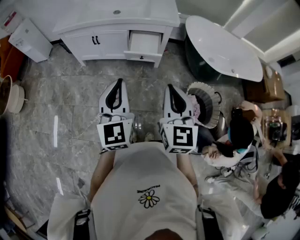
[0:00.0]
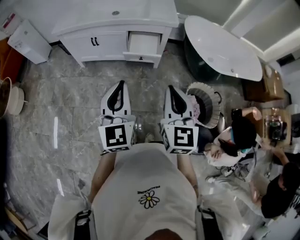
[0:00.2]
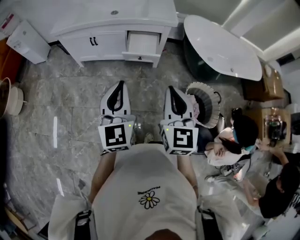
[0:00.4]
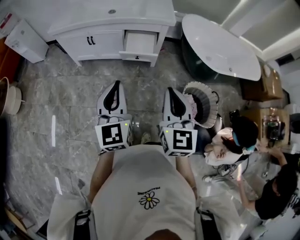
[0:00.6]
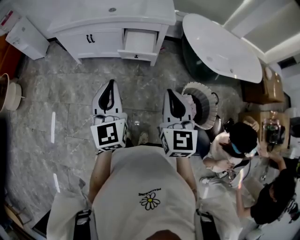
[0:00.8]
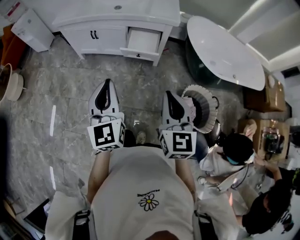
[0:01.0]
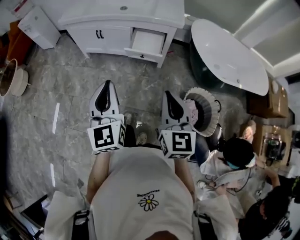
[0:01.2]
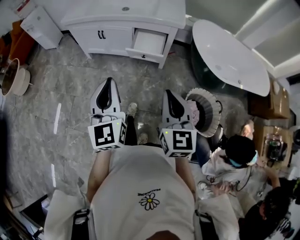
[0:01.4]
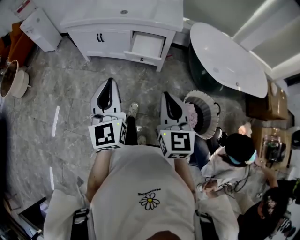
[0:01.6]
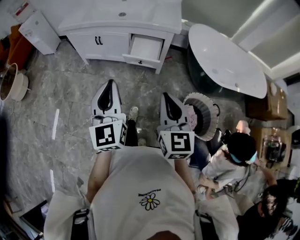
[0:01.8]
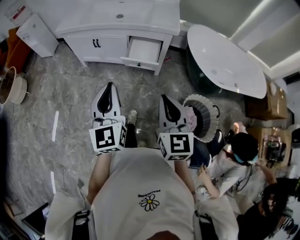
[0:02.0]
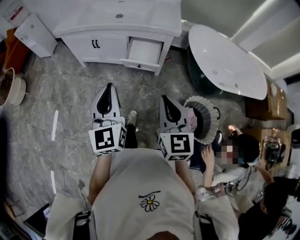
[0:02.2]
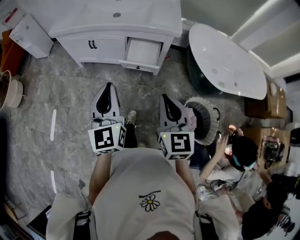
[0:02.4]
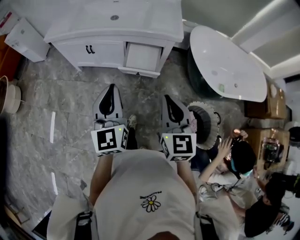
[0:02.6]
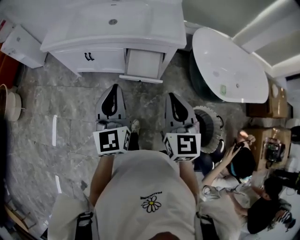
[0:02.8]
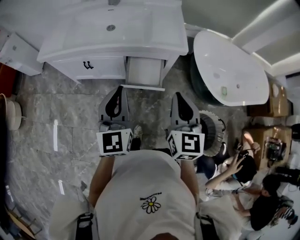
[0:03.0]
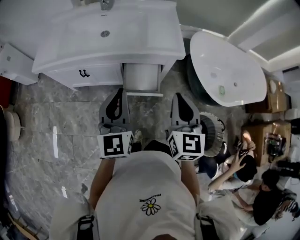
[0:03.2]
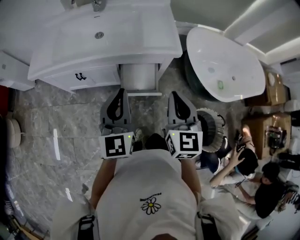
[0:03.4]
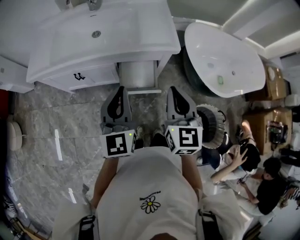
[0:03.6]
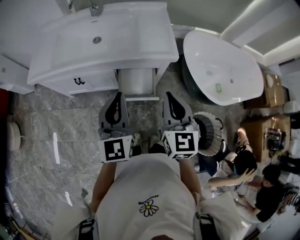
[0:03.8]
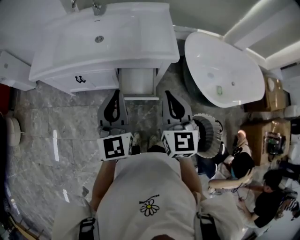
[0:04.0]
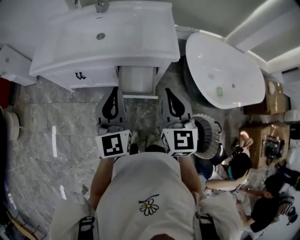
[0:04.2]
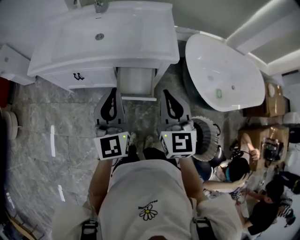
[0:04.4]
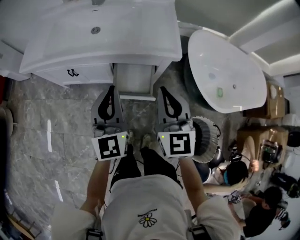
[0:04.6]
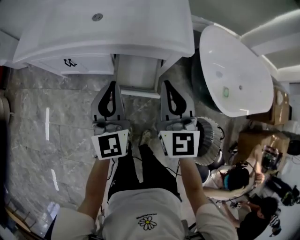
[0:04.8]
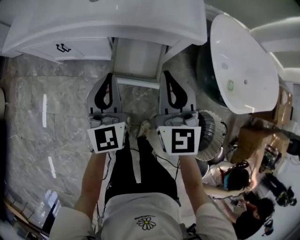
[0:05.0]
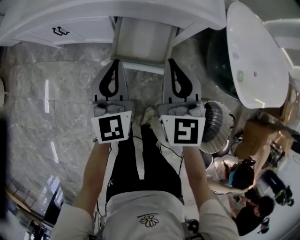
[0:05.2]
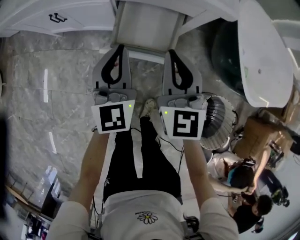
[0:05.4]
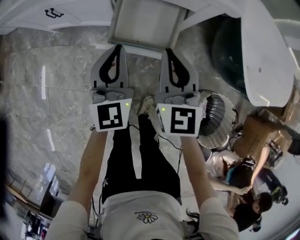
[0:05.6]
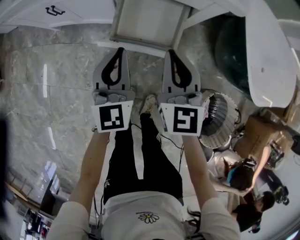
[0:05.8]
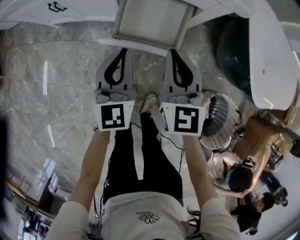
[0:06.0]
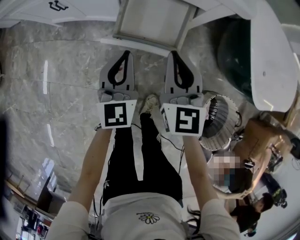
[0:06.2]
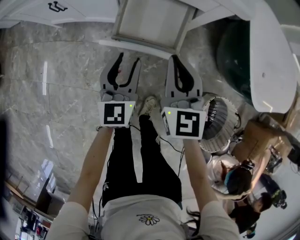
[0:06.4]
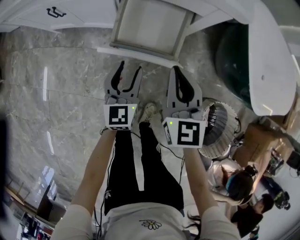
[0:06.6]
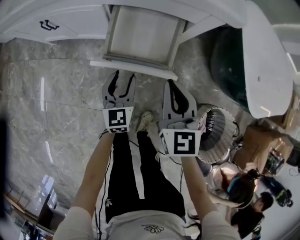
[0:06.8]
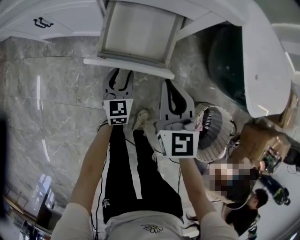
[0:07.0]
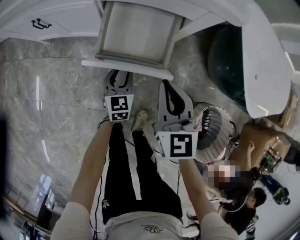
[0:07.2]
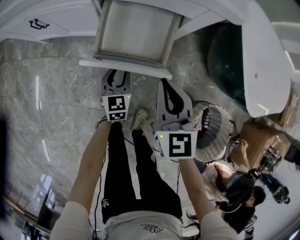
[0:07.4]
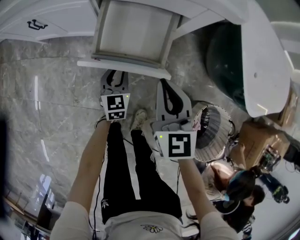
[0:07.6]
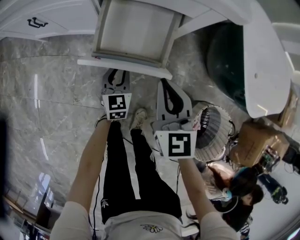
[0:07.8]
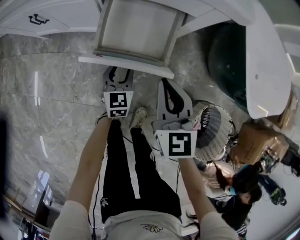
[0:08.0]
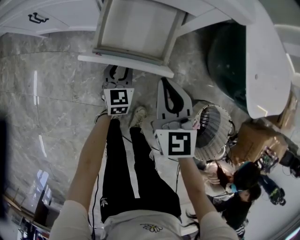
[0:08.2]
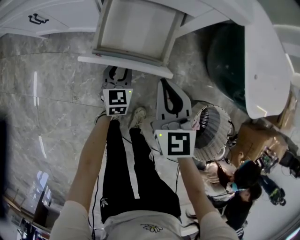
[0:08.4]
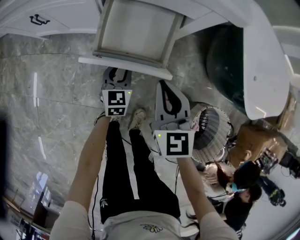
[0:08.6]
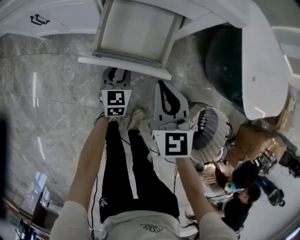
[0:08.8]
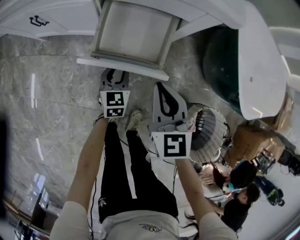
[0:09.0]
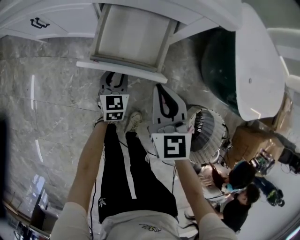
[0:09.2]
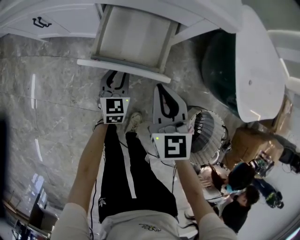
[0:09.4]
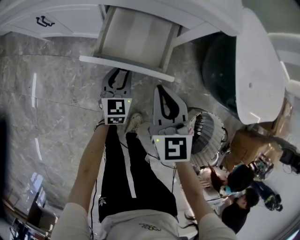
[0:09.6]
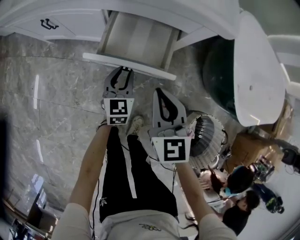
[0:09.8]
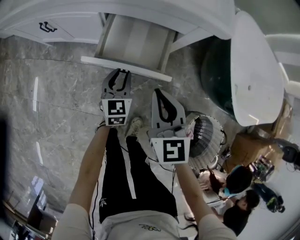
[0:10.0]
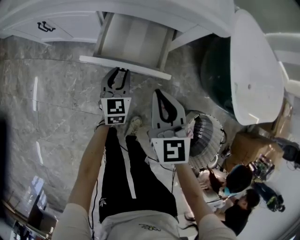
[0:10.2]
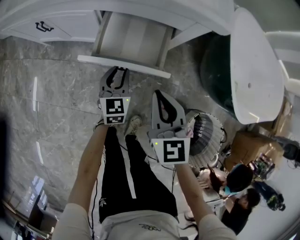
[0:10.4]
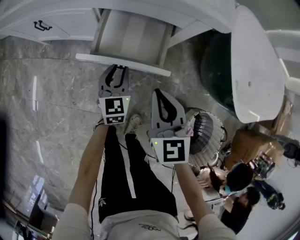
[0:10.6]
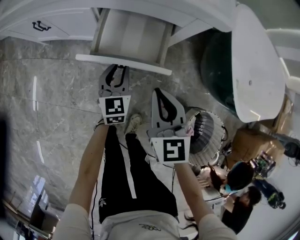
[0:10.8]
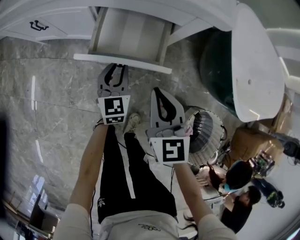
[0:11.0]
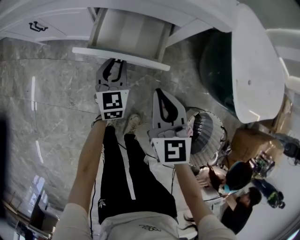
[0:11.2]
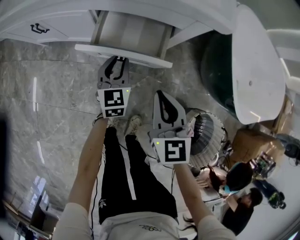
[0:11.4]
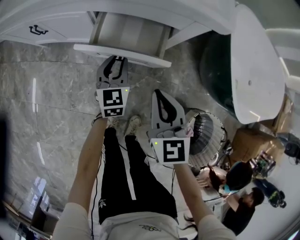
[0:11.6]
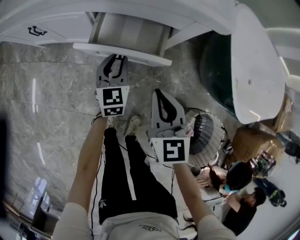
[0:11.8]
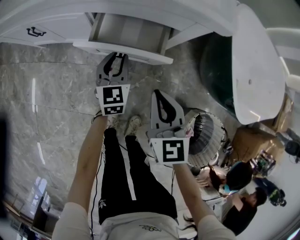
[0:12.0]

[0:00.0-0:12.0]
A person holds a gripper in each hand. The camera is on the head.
0:00.0 to 0:01.6: The right gripper travels to the right by roughly 5 cm.
0:01.6 to 0:03.0: Both grippers move forward, about 30 cm.
0:03.0 to 0:04.4: Both grippers travel together forward, roughly 5 cm.
0:04.4 to 0:06.0: Both grippers travel together downward, approximately 30 cm.
0:06.0 to 0:07.6: The right gripper heads downward, covering approximately 5 cm; the left gripper moves downward, about 20 cm, and opens up.
0:07.6 to 0:09.0: The grippers move only a little.
0:09.0 to 0:10.4: The left gripper is displaced upward by roughly 5 cm.
0:10.4 to 0:12.0: The left gripper heads forward, covering approximately 5 cm.

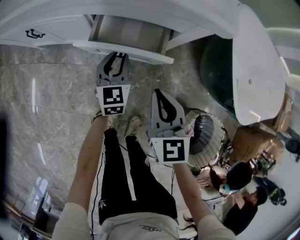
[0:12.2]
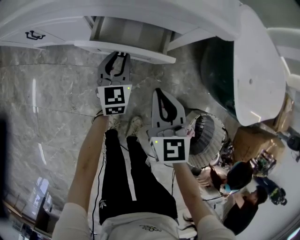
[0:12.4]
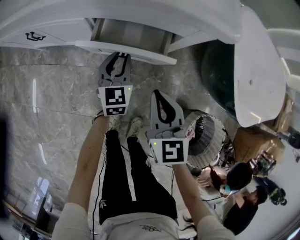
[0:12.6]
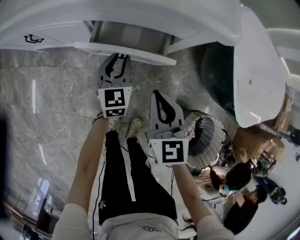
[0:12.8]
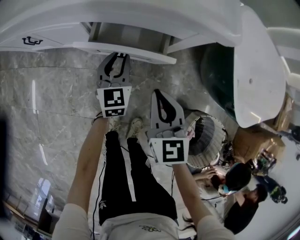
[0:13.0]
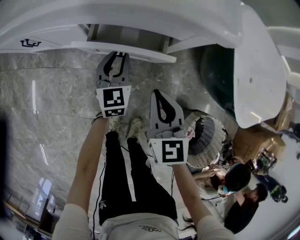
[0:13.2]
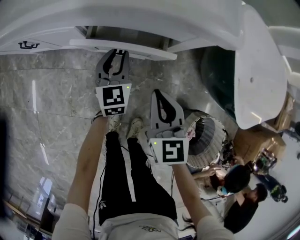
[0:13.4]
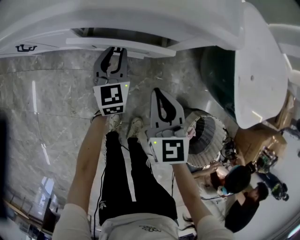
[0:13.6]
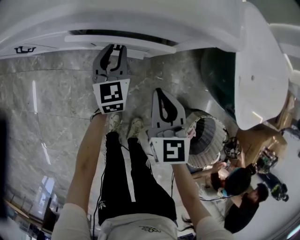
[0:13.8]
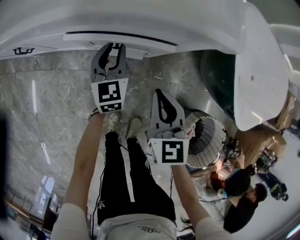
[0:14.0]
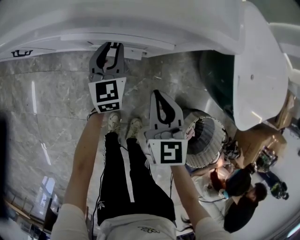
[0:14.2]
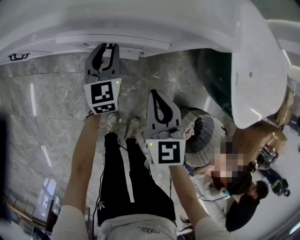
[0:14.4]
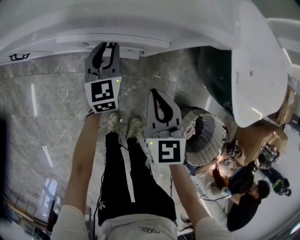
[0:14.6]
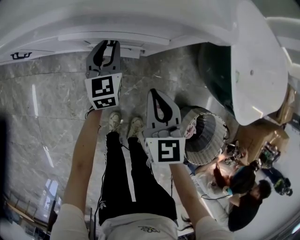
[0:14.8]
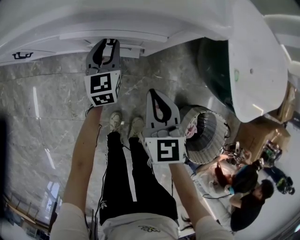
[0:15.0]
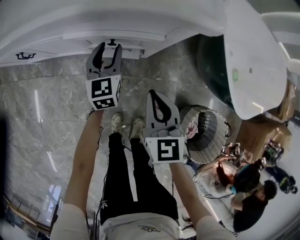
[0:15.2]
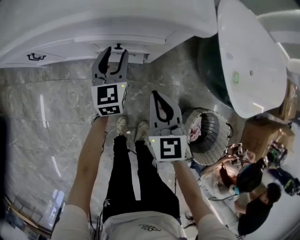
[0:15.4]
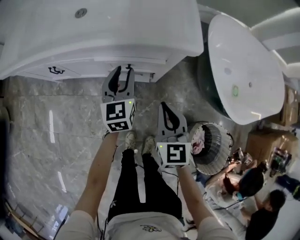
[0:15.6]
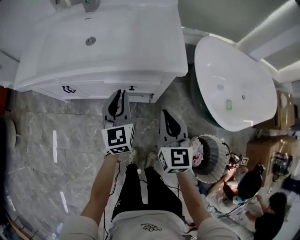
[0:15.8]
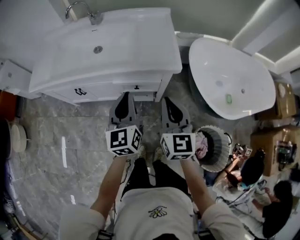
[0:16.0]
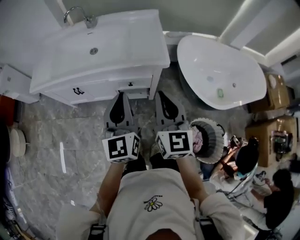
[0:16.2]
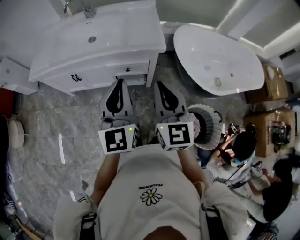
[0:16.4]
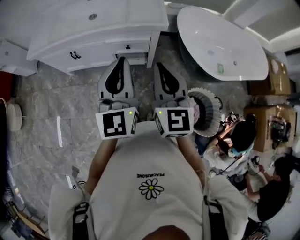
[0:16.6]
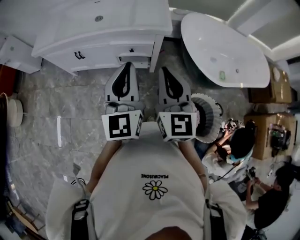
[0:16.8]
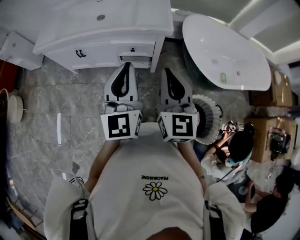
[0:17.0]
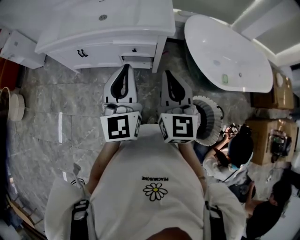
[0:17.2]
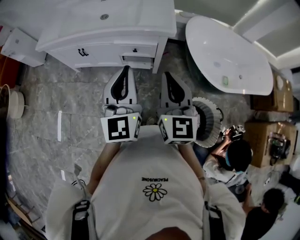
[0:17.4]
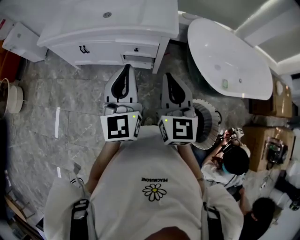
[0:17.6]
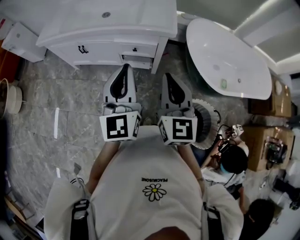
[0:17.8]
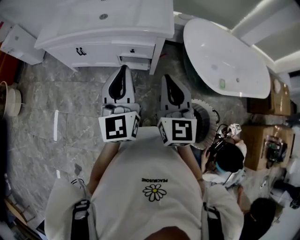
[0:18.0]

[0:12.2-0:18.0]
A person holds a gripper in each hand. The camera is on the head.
0:12.2 to 0:13.6: The left gripper moves forward, some 5 cm.
0:13.6 to 0:15.0: The grippers make only small movements.
0:15.0 to 0:16.6: The two grippers go about 50 cm upward and backward. The right gripper swivels roughly 20 degrees. The left gripper swivels some 30 degrees, and closes its fingers.
0:16.6 to 0:18.0: The grippers stay close to where they were, moving slightly.

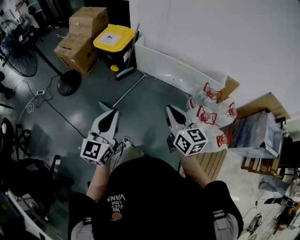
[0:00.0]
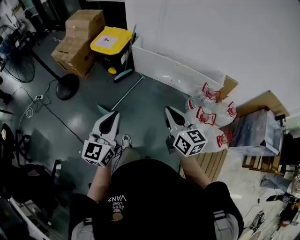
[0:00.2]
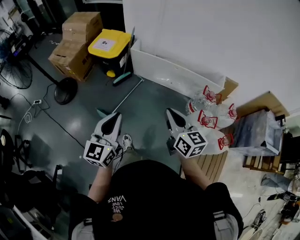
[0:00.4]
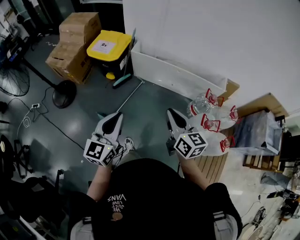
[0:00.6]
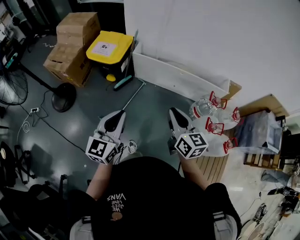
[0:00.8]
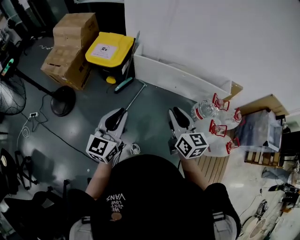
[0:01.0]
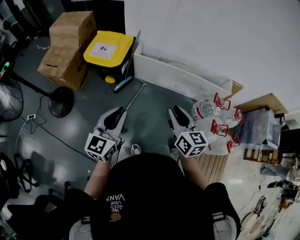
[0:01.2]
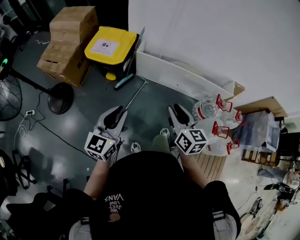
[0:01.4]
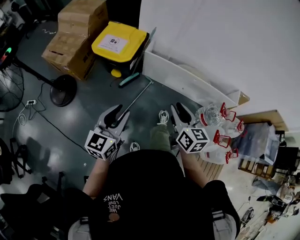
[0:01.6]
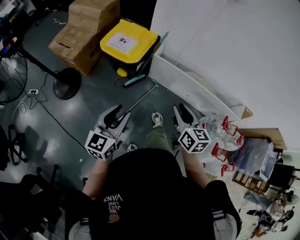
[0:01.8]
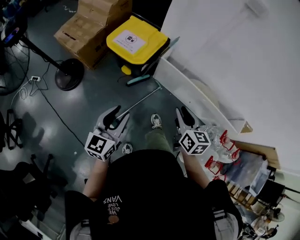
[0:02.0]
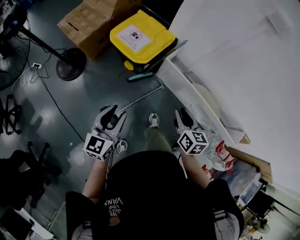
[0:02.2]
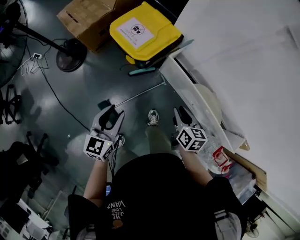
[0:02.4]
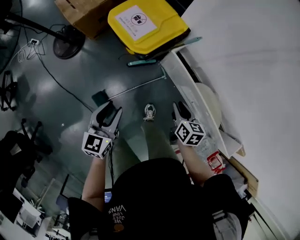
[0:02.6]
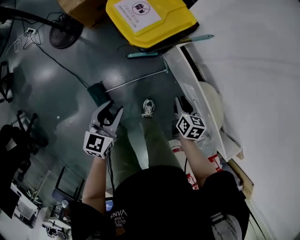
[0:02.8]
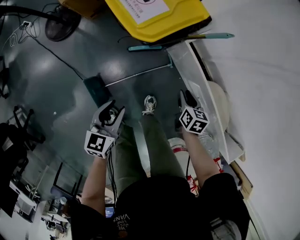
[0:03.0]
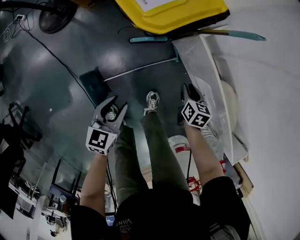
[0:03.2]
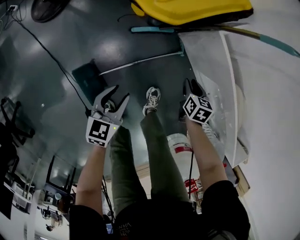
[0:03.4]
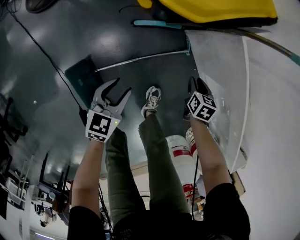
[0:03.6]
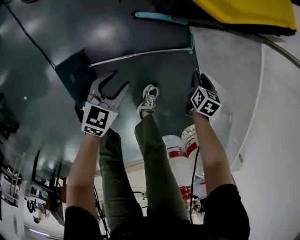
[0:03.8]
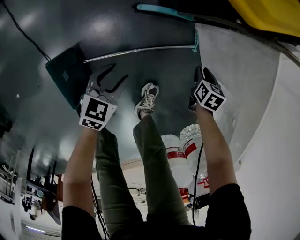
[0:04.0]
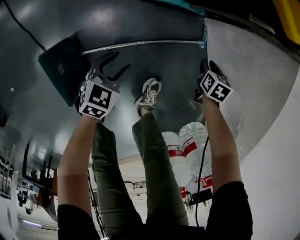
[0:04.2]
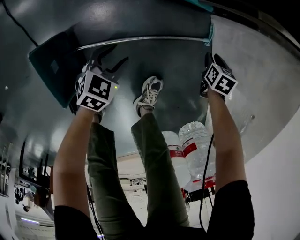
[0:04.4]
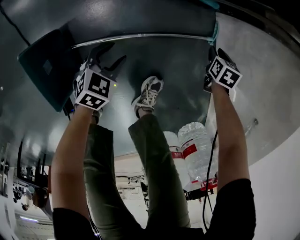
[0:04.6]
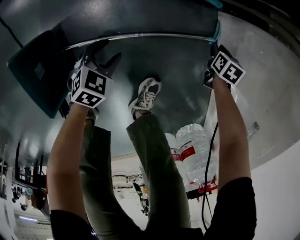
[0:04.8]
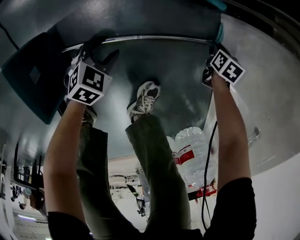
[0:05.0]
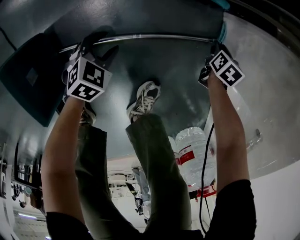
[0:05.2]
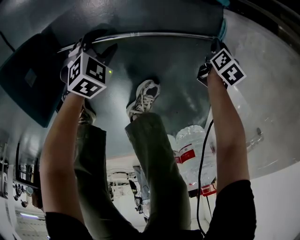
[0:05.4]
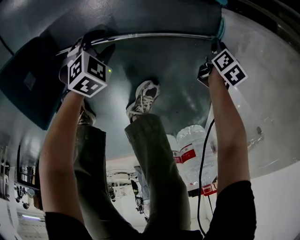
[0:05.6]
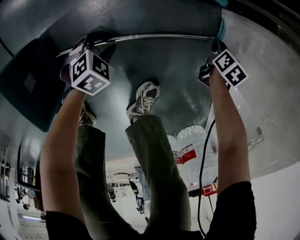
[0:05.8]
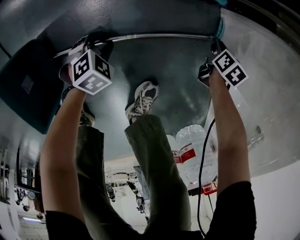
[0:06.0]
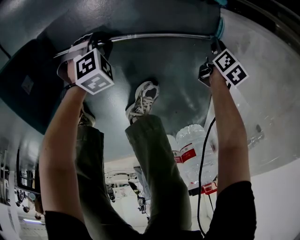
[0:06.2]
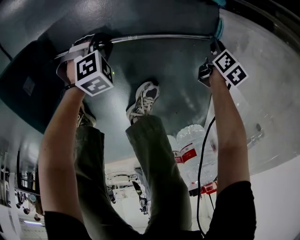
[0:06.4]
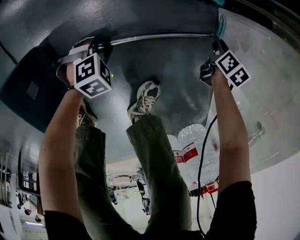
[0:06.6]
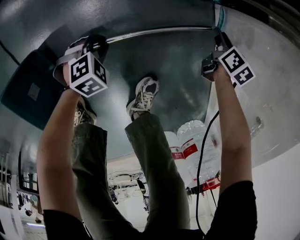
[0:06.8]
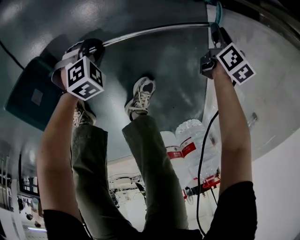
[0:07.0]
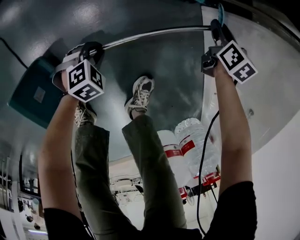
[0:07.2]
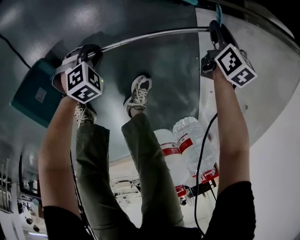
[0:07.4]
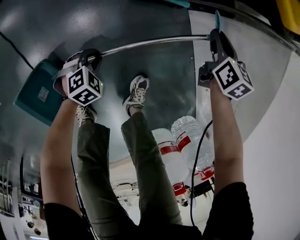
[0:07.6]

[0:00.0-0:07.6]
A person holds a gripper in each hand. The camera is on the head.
0:00.0 to 0:01.6: Both grippers travel together forward and to the left, roughly 35 cm. The right gripper opens up. Meanwhile the left gripper opens.
0:01.6 to 0:03.0: The grippers both shift downward by some 35 cm. The left gripper swivels approximately 40 degrees. Meanwhile the right gripper tips its fingers downward by approximately 30 degrees.
0:03.0 to 0:04.6: The two grippers go some 50 cm downward. The left gripper turns by some 20 degrees, while the right gripper changes its angle by about 30 degrees.
0:04.6 to 0:06.0: The right gripper heads downward, covering some 5 cm, and turns by about 20 degrees. The left gripper heads downward, covering approximately 10 cm, and swivels about 20 degrees.
0:06.0 to 0:07.6: The left gripper heads upward, covering some 10 cm. The right gripper goes approximately 30 cm upward and to the left, and turns by about 20 degrees.
